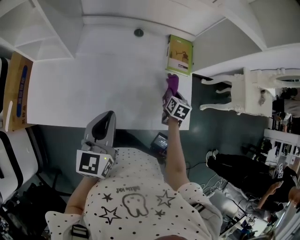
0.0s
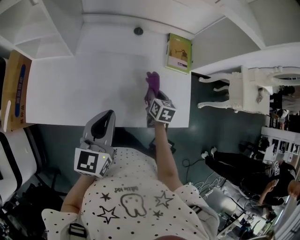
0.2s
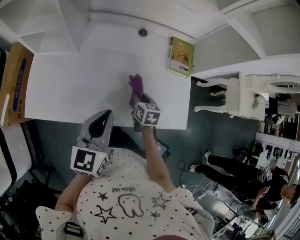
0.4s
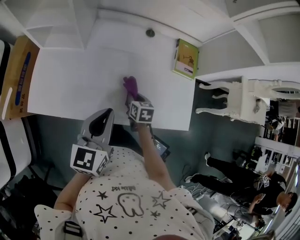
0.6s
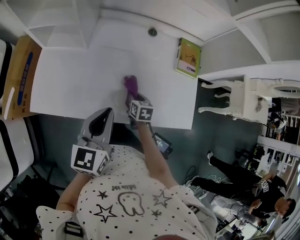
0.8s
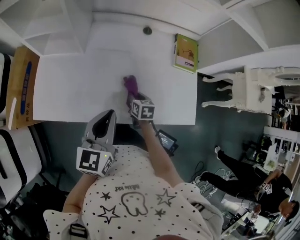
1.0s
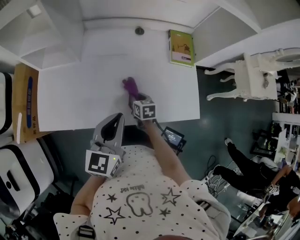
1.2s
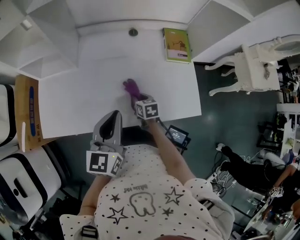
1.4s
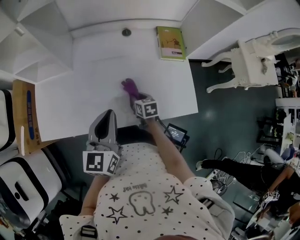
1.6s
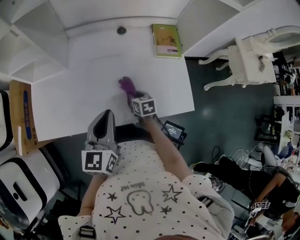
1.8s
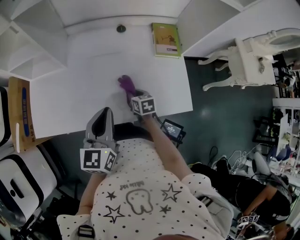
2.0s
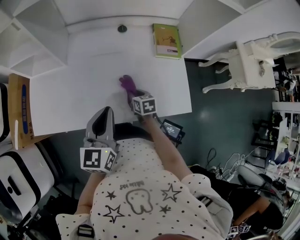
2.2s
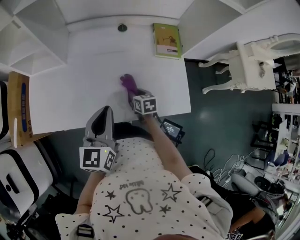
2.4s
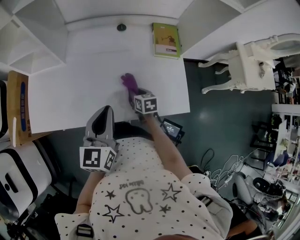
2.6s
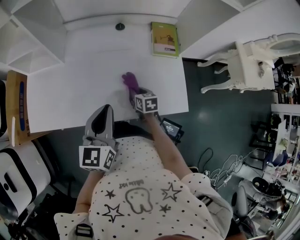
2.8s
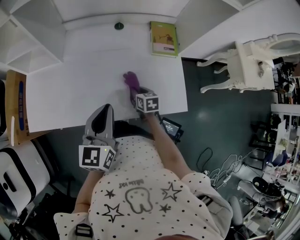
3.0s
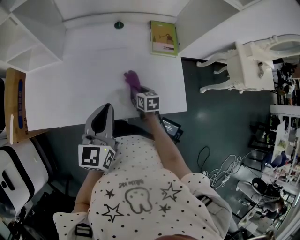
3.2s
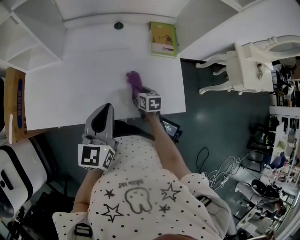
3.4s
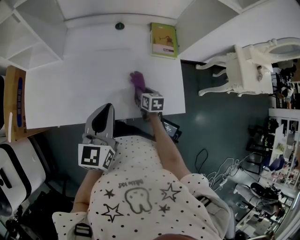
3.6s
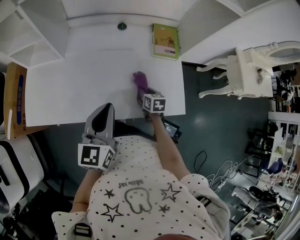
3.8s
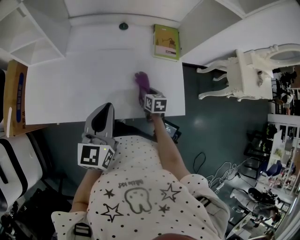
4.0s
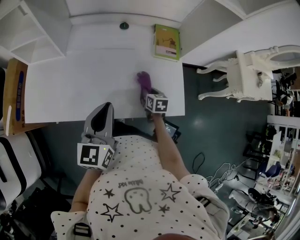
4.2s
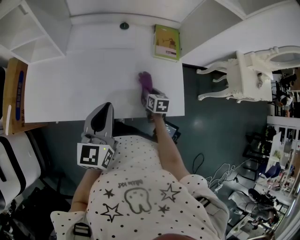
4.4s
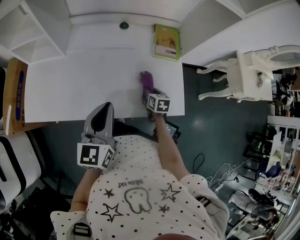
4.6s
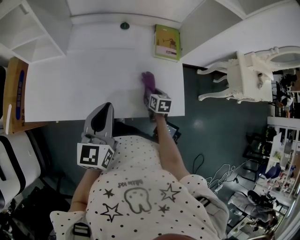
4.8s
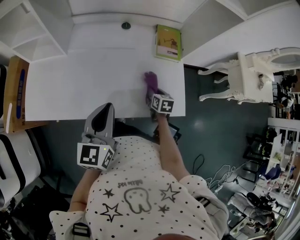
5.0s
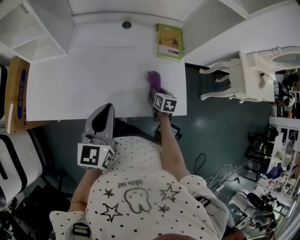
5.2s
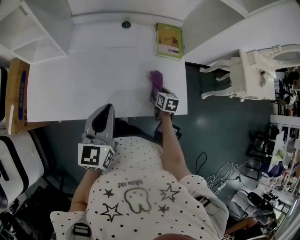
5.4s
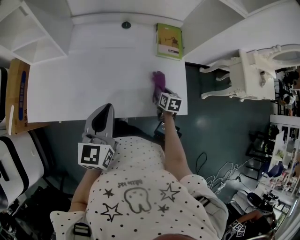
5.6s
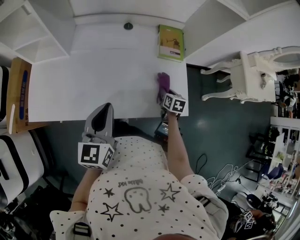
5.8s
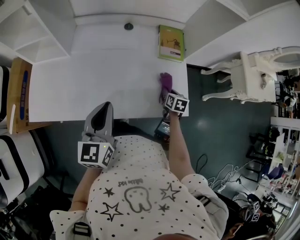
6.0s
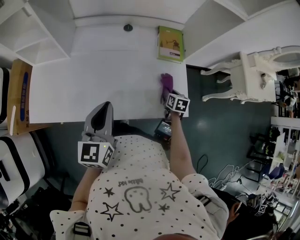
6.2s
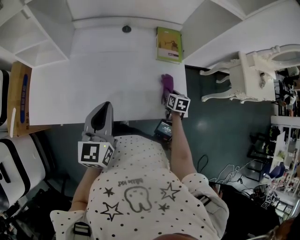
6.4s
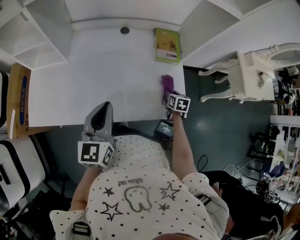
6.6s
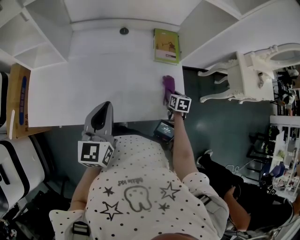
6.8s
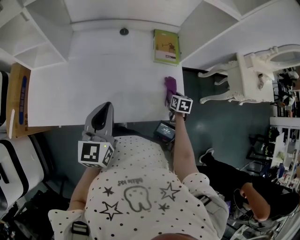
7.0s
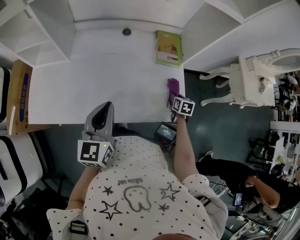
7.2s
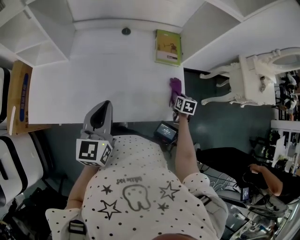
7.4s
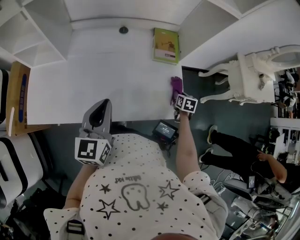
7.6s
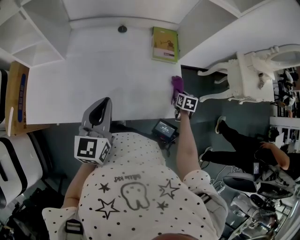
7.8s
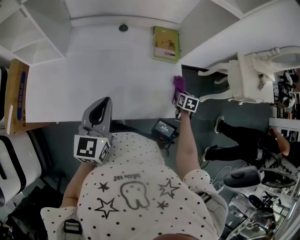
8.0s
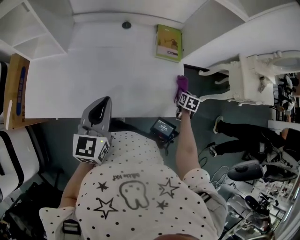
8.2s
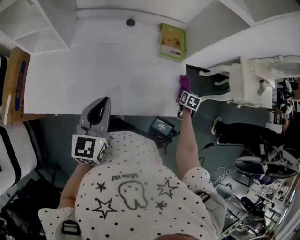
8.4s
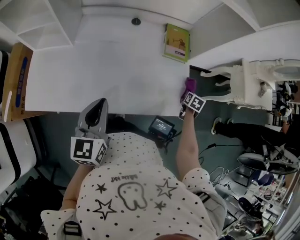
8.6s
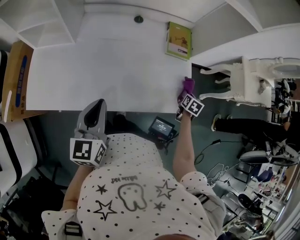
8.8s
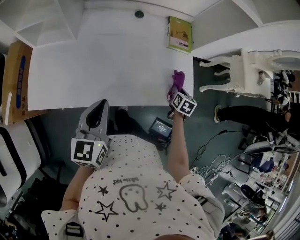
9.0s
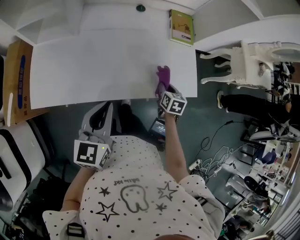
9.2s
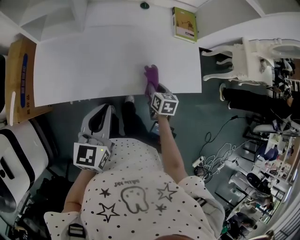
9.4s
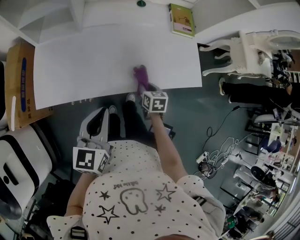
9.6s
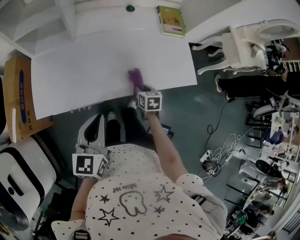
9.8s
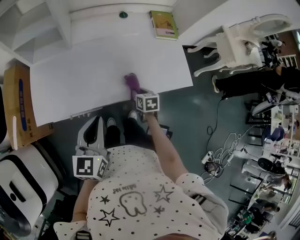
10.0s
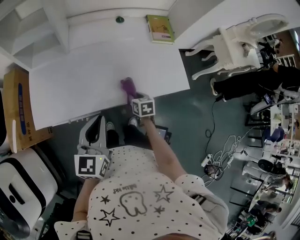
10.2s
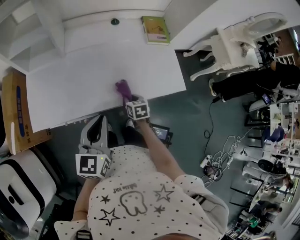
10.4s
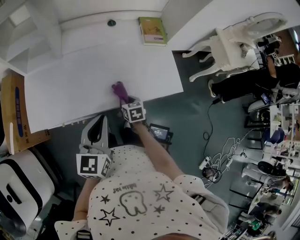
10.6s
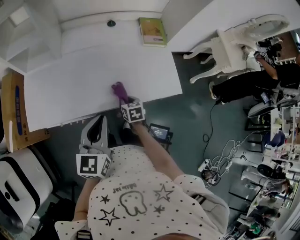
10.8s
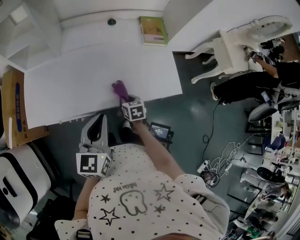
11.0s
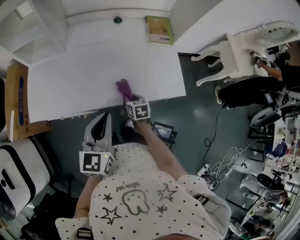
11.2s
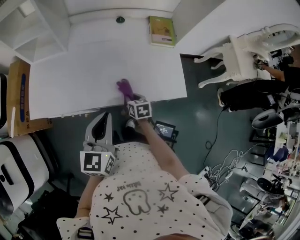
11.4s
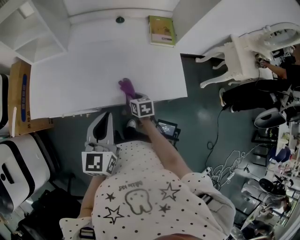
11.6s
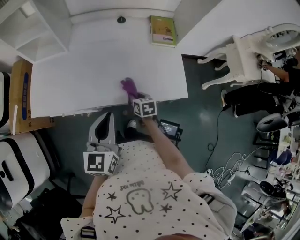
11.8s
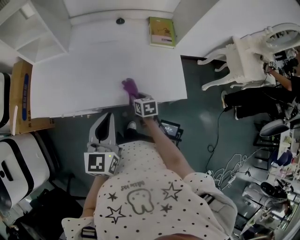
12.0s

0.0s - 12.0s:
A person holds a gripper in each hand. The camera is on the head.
0.0s - 1.6s: The right gripper shifts approximately 20 cm to the left, and turns by about 20 degrees.
1.6s - 3.0s: Both grippers move to the right, some 5 cm.
3.0s - 4.4s: The right gripper shifts approximately 10 cm to the right.
4.4s - 6.0s: The right gripper goes about 10 cm to the right.
6.0s - 7.6s: The right gripper heads to the right, covering about 10 cm.
7.6s - 9.0s: Both grippers move to the left and backward, about 10 cm.
9.0s - 10.4s: The left gripper goes roughly 5 cm backward. The right gripper is displaced to the left and backward by about 25 cm, and turns by approximately 20 degrees.
10.4s - 12.0s: Both grippers travel together to the right, approximately 10 cm.

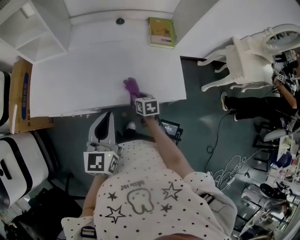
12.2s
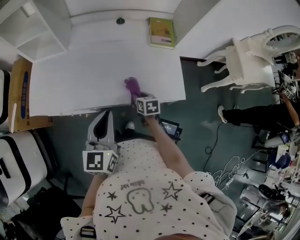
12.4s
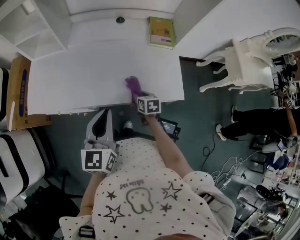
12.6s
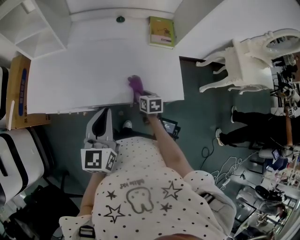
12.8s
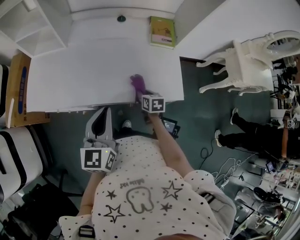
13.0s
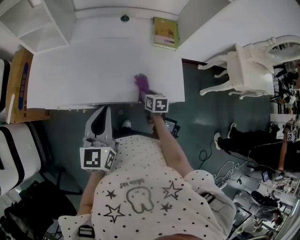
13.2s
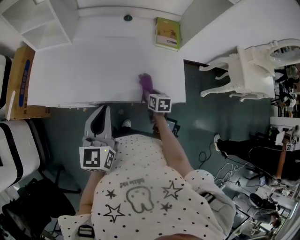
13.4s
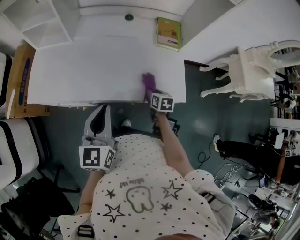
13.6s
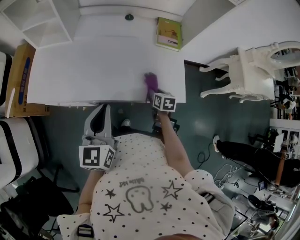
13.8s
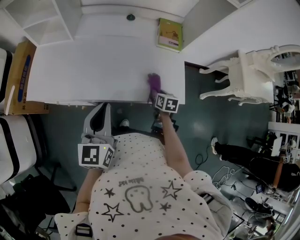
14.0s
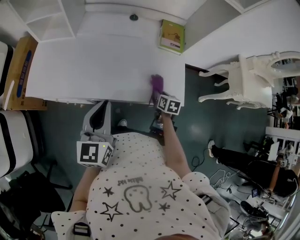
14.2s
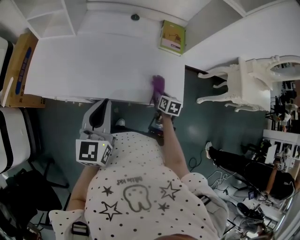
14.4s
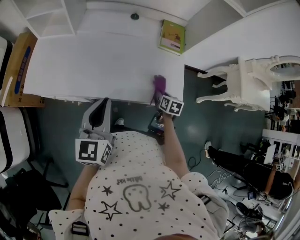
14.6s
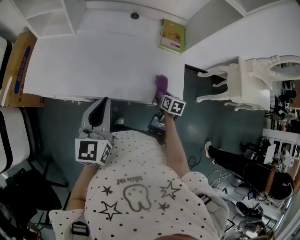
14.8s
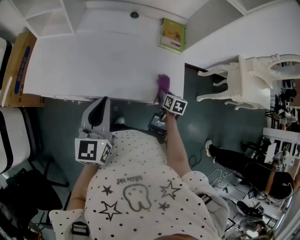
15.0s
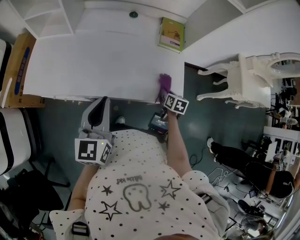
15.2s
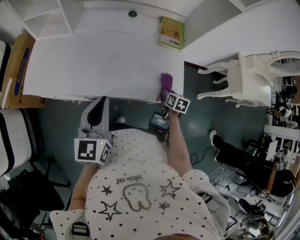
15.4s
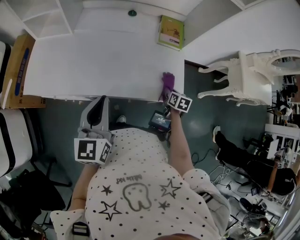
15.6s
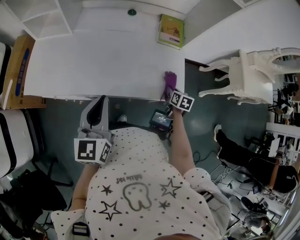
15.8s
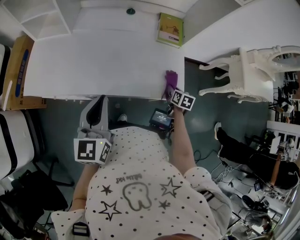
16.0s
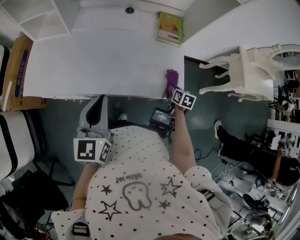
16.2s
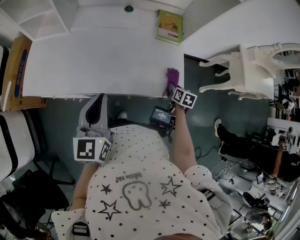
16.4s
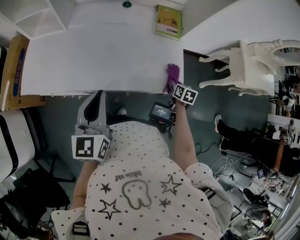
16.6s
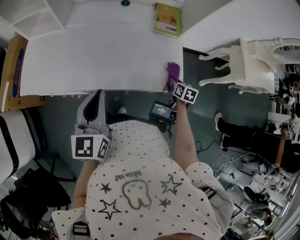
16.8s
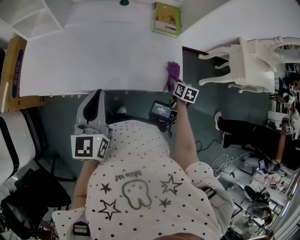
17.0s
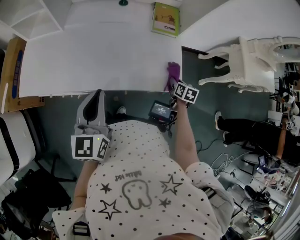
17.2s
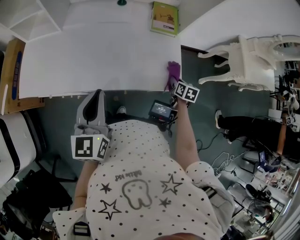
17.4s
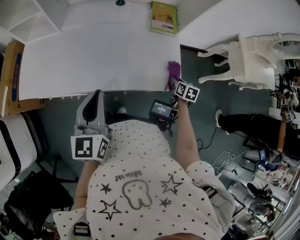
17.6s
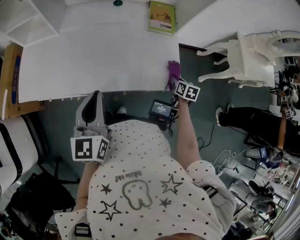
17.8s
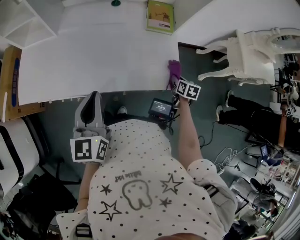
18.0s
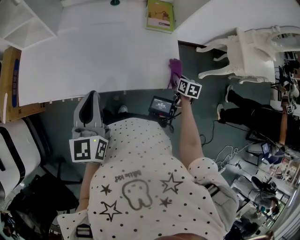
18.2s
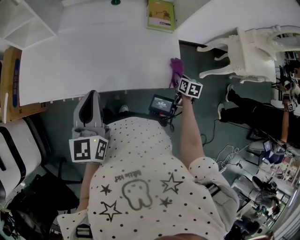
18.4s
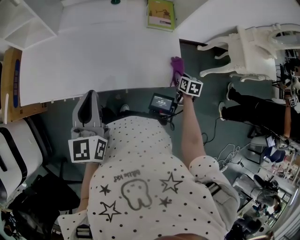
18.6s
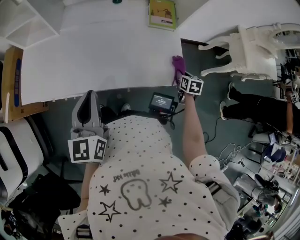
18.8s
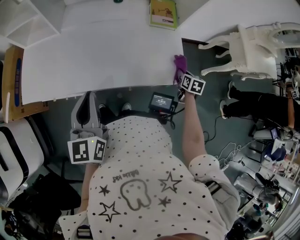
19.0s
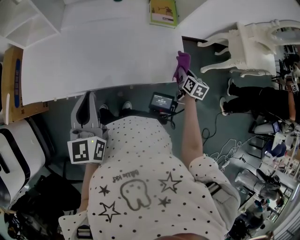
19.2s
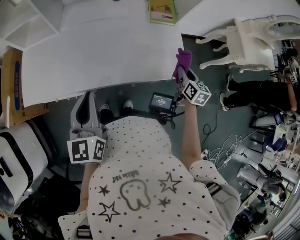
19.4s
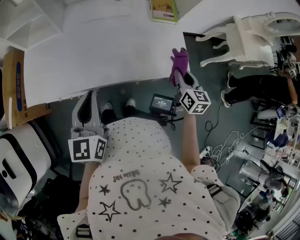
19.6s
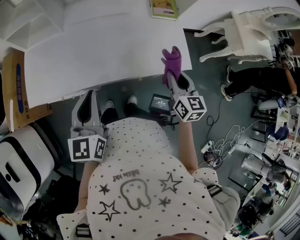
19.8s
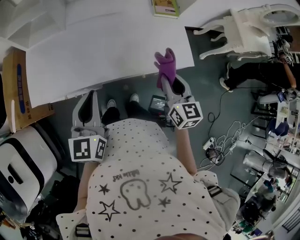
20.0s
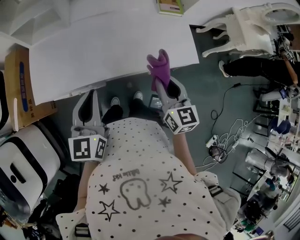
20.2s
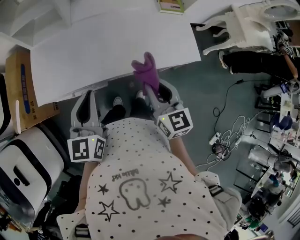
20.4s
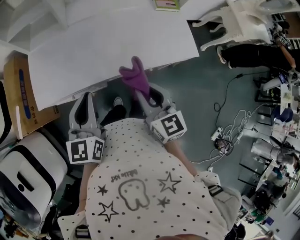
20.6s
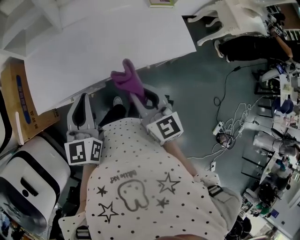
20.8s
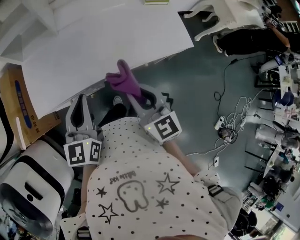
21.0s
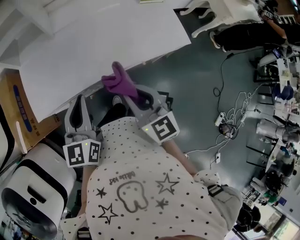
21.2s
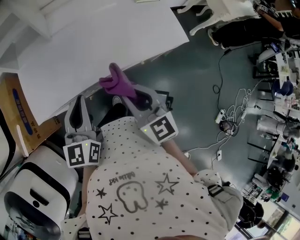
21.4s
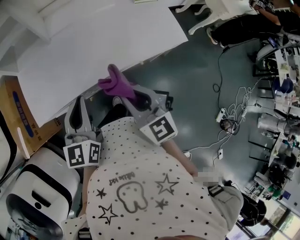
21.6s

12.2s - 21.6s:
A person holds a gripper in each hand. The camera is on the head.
12.2s - 13.8s: The right gripper is displaced to the right by roughly 10 cm.
13.8s - 15.4s: The right gripper goes roughly 10 cm to the right.
15.4s - 17.0s: There are only small adjustments of the grippers.
17.0s - 18.4s: The grippers stay close to where they were, moving slightly.
18.4s - 20.0s: The left gripper heads to the left, covering approximately 10 cm; the right gripper shifts approximately 35 cm to the left, upward and backward, and tips its fingers upward by approximately 30 degrees.
20.0s - 21.6s: The left gripper travels to the left by about 5 cm. The right gripper shifts some 20 cm to the left.

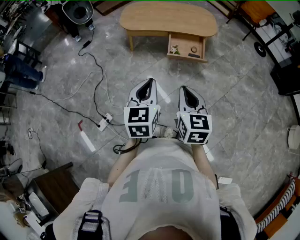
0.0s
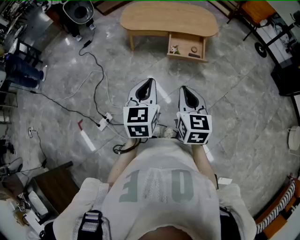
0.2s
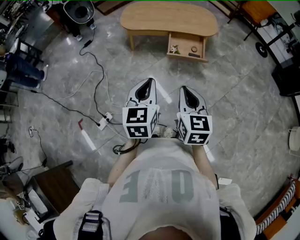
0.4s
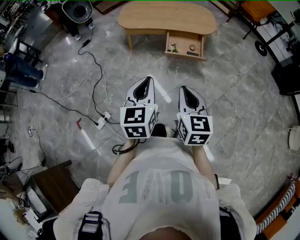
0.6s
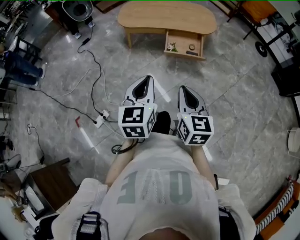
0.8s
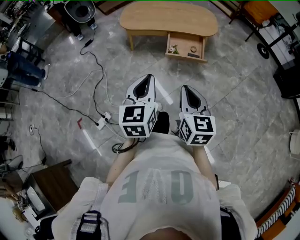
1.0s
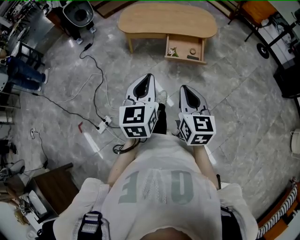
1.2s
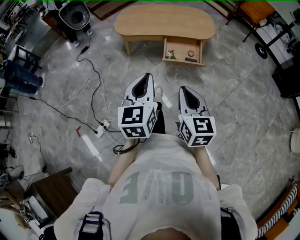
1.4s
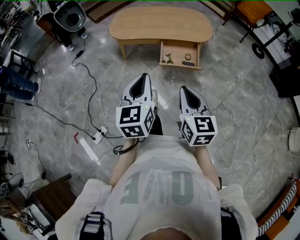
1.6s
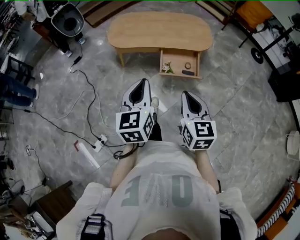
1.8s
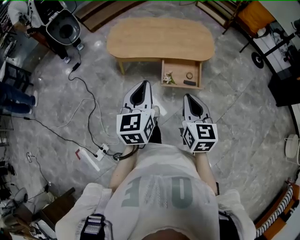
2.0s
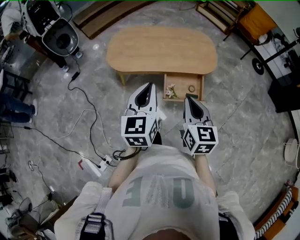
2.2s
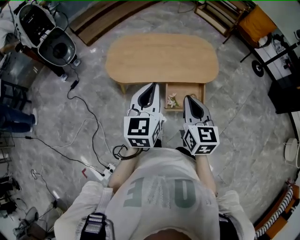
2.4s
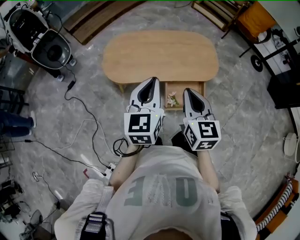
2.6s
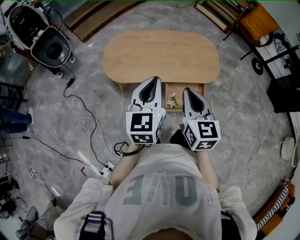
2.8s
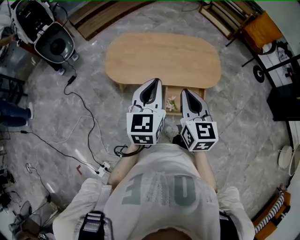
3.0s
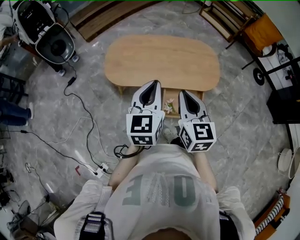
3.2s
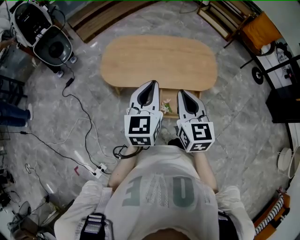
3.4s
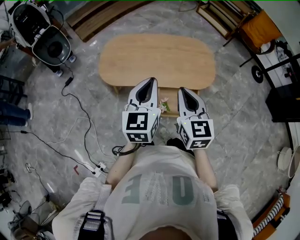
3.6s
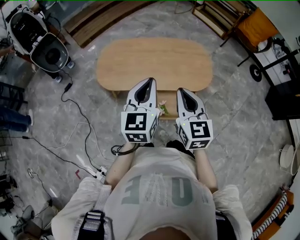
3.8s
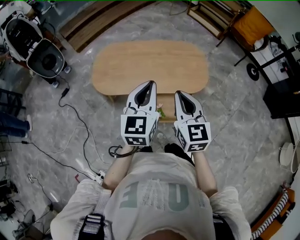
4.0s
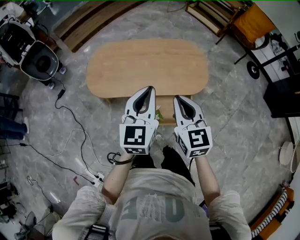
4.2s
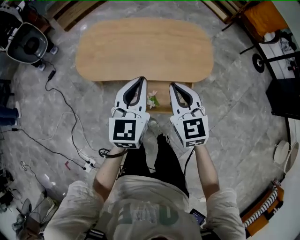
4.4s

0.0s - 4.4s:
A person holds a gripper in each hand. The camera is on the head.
0.0s - 1.4s: The right gripper moves to the right, about 5 cm. The left gripper is displaced forward by approximately 5 cm.
1.4s - 3.0s: Both grippers are carried forward, roughly 50 cm.
3.0s - 4.4s: The left gripper goes approximately 15 cm to the right, downward and forward, while the right gripper travels downward, to the right and forward by approximately 15 cm.
